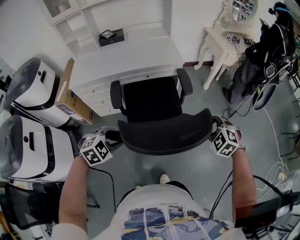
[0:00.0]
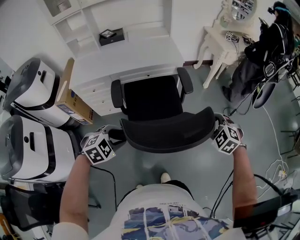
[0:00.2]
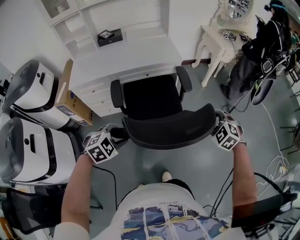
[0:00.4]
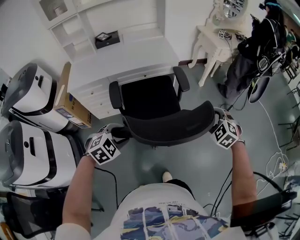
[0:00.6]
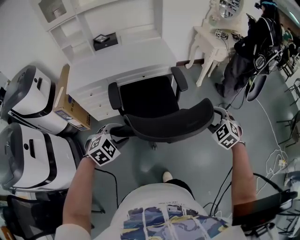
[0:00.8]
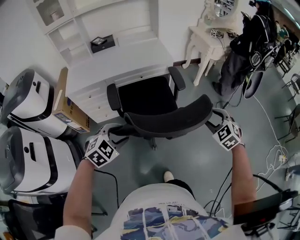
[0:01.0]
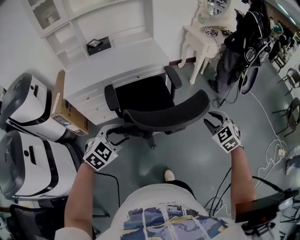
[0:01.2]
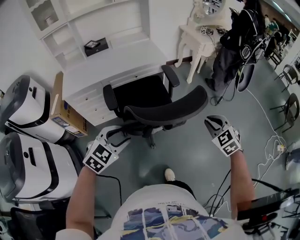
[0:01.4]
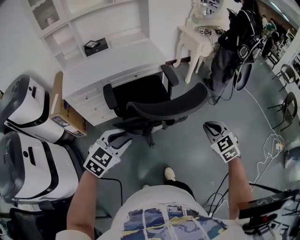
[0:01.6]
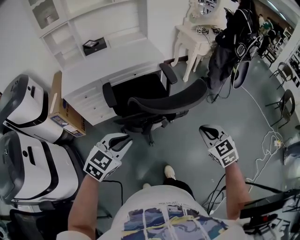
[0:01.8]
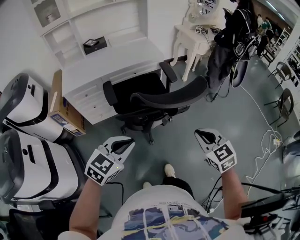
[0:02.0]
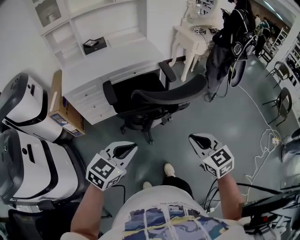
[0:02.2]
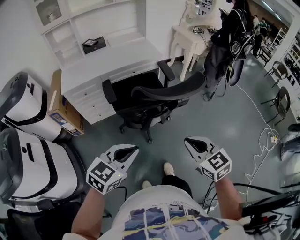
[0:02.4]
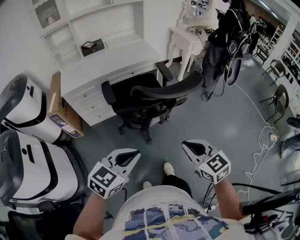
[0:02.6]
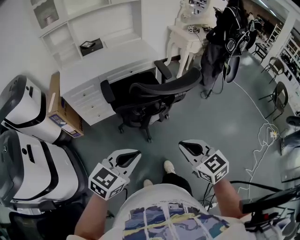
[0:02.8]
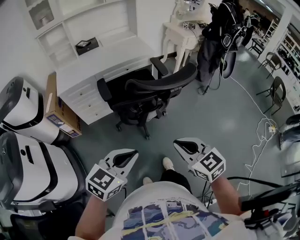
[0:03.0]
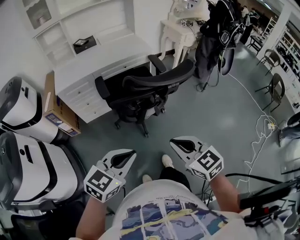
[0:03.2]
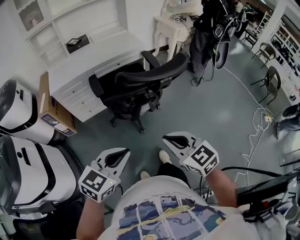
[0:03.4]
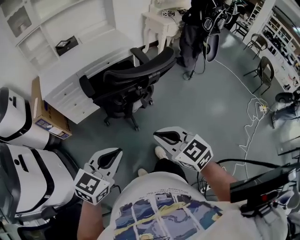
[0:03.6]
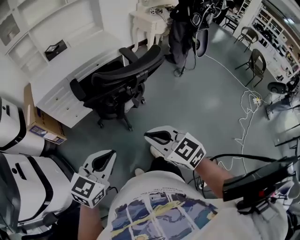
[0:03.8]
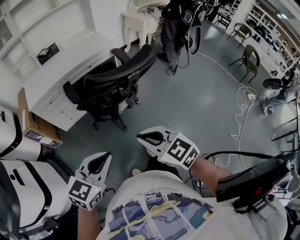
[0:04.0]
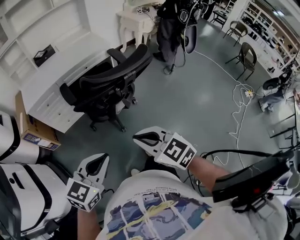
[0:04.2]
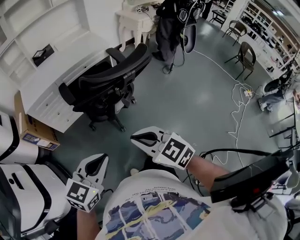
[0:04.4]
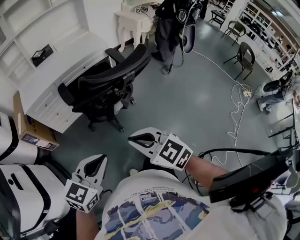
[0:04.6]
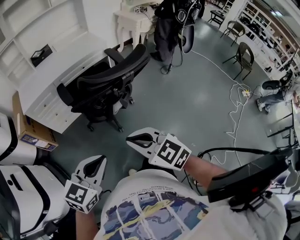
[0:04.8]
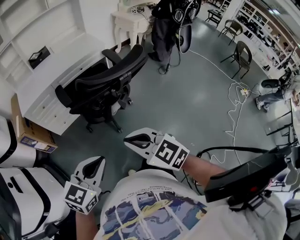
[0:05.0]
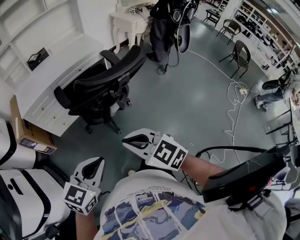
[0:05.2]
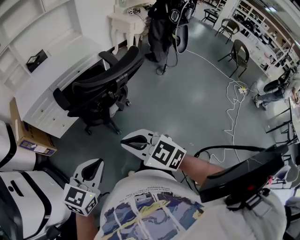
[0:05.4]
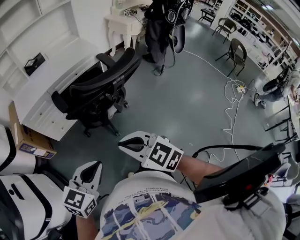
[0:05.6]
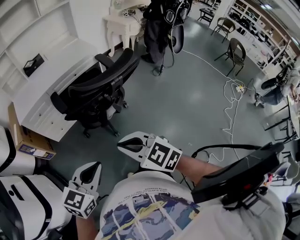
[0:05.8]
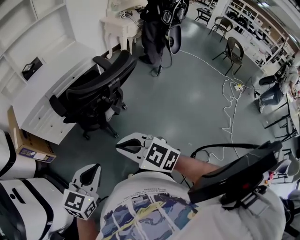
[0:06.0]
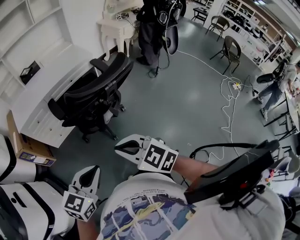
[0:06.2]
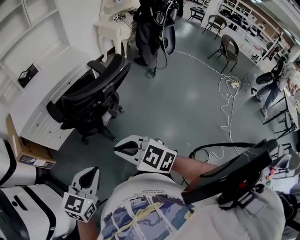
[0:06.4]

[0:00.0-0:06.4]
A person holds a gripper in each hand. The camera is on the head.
0:00.0 to 0:01.6: The left gripper moves upward and backward, roughly 10 cm, and rotates approximately 30 degrees. Meanwhile the right gripper shifts roughly 15 cm backward, changes its angle by roughly 30 degrees, and closes its fingers.
0:01.6 to 0:03.2: The left gripper shifts roughly 15 cm backward, and closes its fingers. Meanwhile the right gripper is displaced backward and to the left by roughly 25 cm, and swivels approximately 30 degrees.
0:03.2 to 0:04.8: The grippers make only small movements.
0:04.8 to 0:06.4: Both grippers stay about where they are.

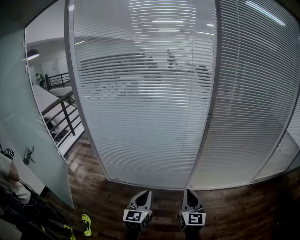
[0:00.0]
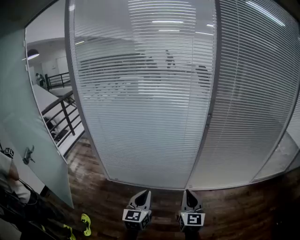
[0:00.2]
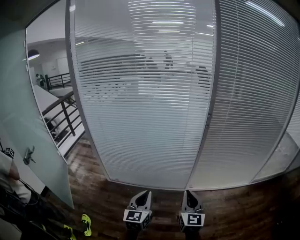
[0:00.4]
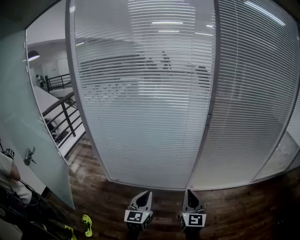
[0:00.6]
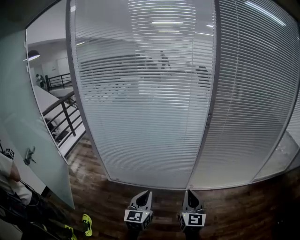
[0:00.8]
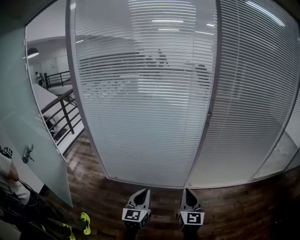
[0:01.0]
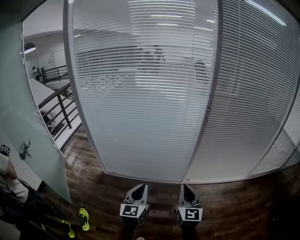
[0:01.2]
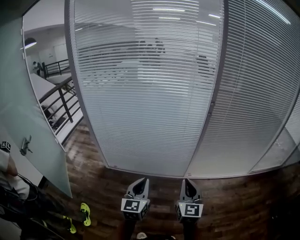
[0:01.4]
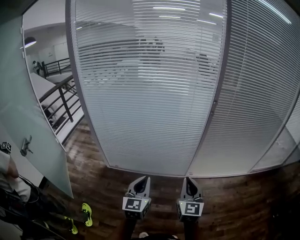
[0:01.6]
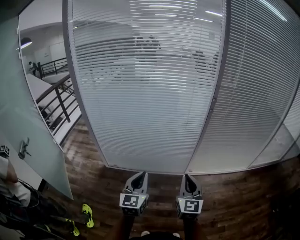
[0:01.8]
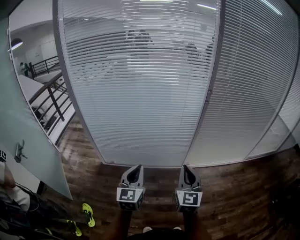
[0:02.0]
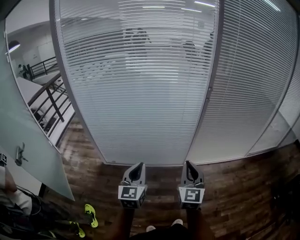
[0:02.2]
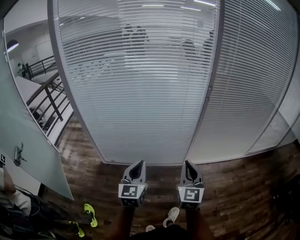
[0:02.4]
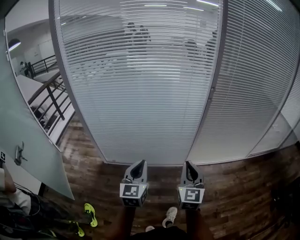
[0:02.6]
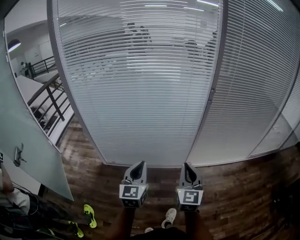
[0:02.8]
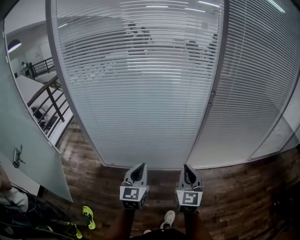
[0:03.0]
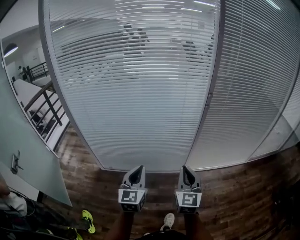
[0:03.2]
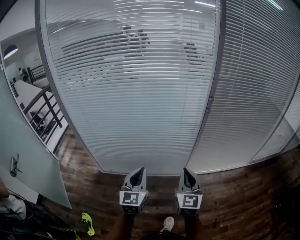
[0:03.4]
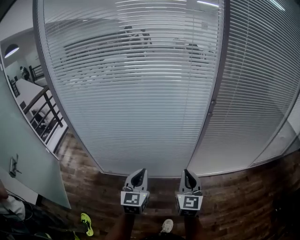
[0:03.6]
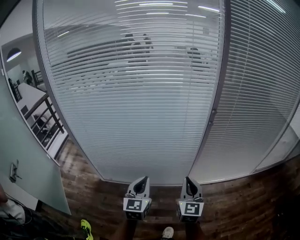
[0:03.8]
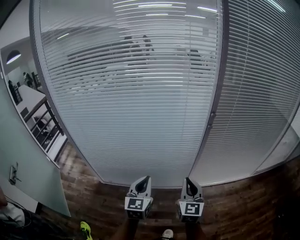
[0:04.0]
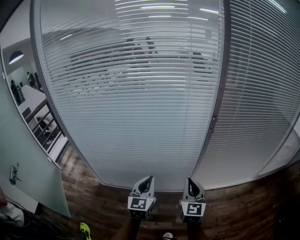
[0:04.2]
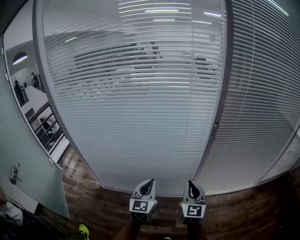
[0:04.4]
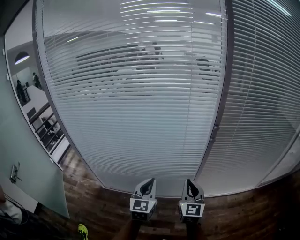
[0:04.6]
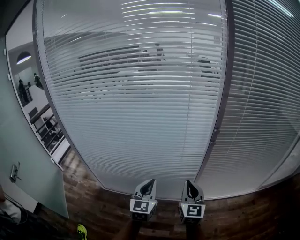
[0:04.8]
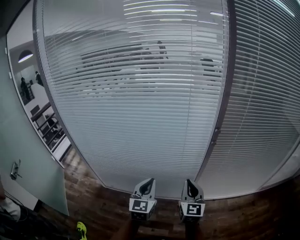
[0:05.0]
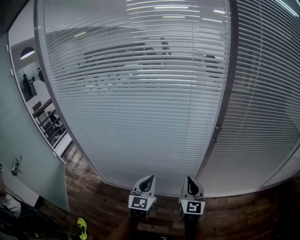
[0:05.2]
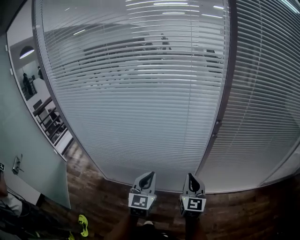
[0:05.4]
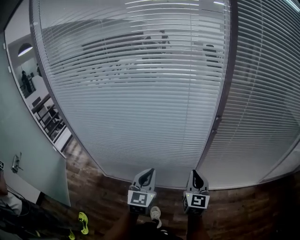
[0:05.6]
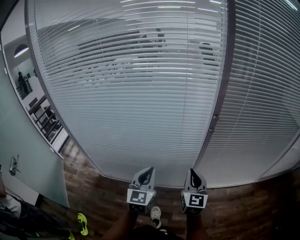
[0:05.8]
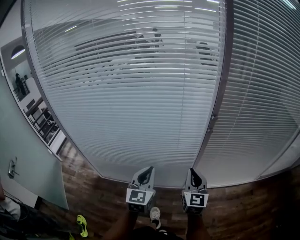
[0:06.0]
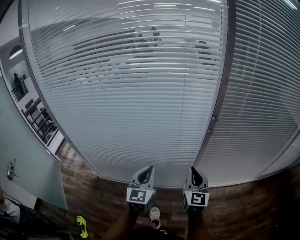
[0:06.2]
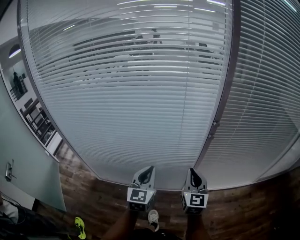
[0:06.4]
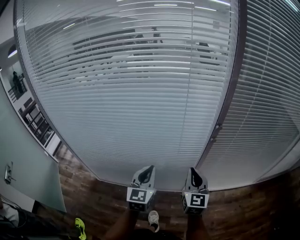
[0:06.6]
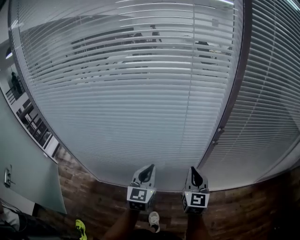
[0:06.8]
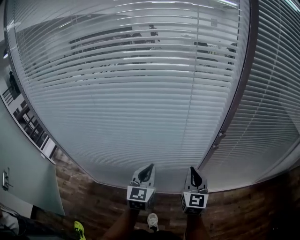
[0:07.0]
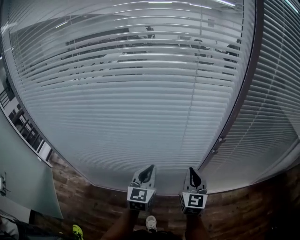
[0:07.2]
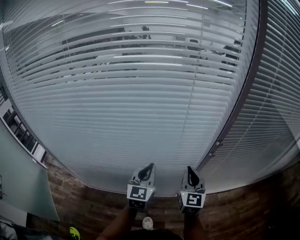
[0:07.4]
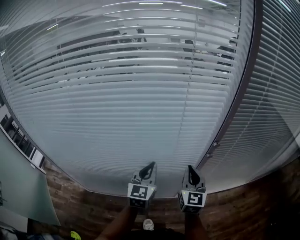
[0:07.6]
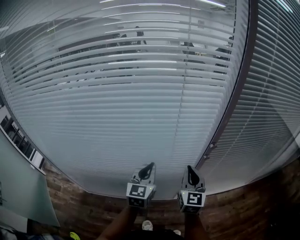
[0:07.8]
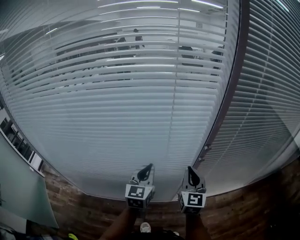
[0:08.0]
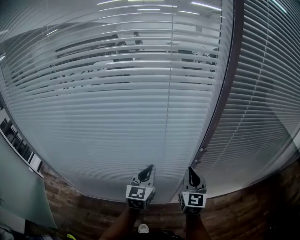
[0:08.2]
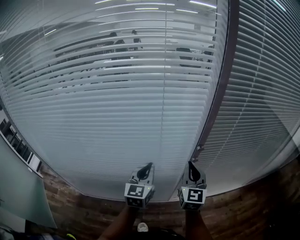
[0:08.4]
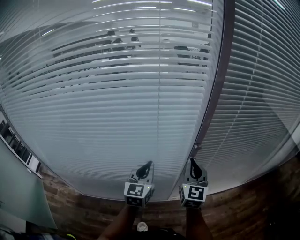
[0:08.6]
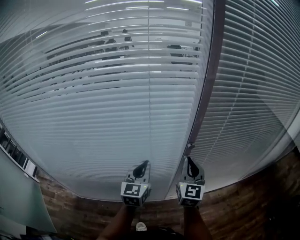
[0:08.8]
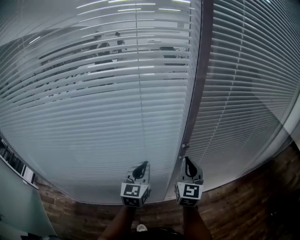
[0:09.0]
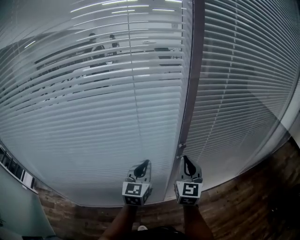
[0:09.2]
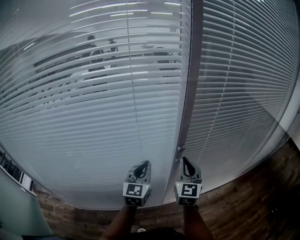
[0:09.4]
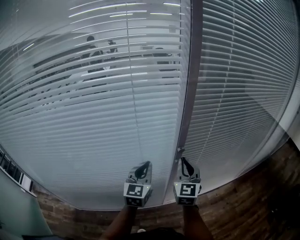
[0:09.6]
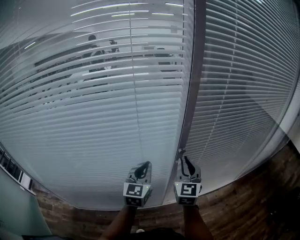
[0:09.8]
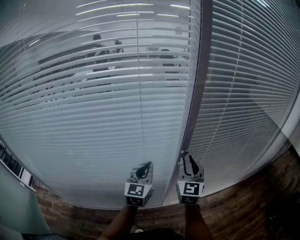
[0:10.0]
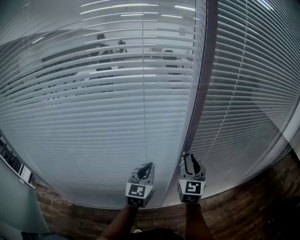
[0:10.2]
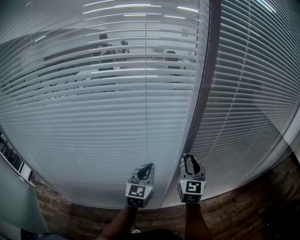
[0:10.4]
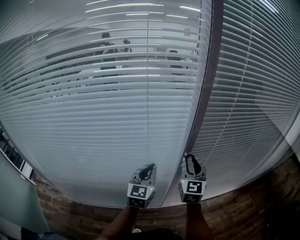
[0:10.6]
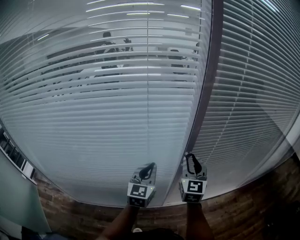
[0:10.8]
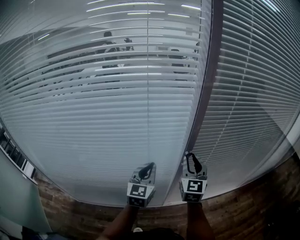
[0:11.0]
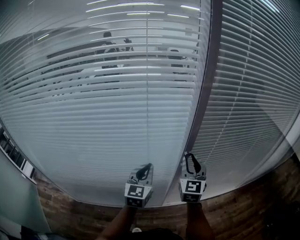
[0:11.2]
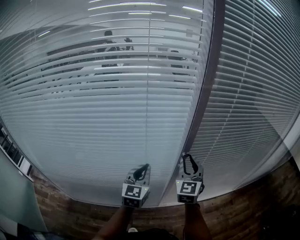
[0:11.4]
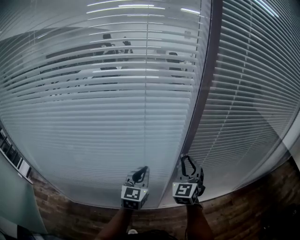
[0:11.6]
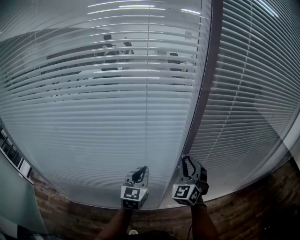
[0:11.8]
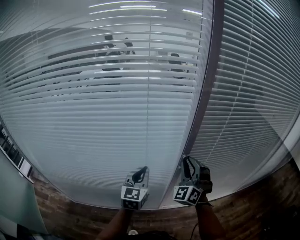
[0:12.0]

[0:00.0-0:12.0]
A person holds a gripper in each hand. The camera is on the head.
0:00.0 to 0:01.6: The grippers stay close to where they were, moving slightly.
0:01.6 to 0:03.0: The two grippers go some 5 cm forward.
0:03.0 to 0:04.4: The left gripper moves forward and to the right, roughly 15 cm; the right gripper travels forward by some 15 cm.
0:04.4 to 0:06.0: The left gripper shifts by roughly 5 cm; the right gripper goes some 5 cm forward.
0:06.0 to 0:07.6: Both grippers travel together forward, about 15 cm.
0:07.6 to 0:09.0: The left gripper moves to the right, approximately 10 cm. The right gripper shifts roughly 10 cm to the right and upward.
0:09.0 to 0:10.4: The right gripper opens.
0:10.4 to 0:12.0: The right gripper rotates around the line of its fingers by about 50 degrees, counterclockwise from behind.

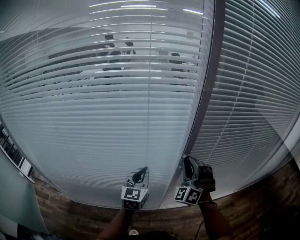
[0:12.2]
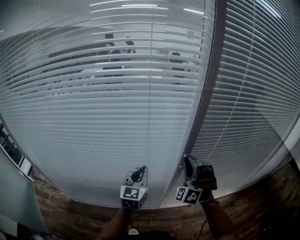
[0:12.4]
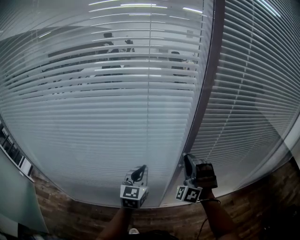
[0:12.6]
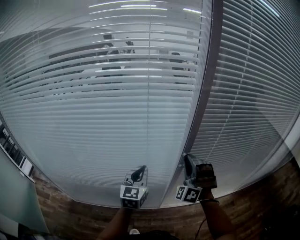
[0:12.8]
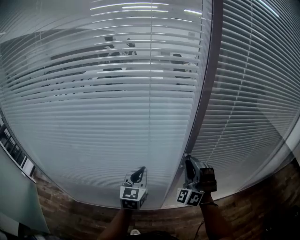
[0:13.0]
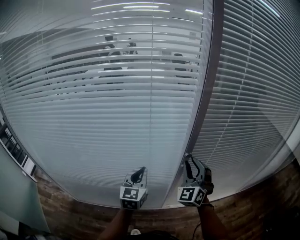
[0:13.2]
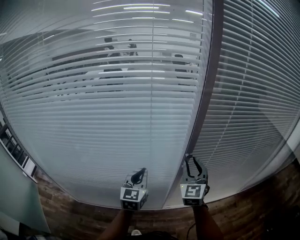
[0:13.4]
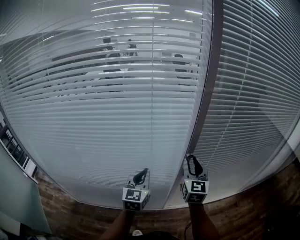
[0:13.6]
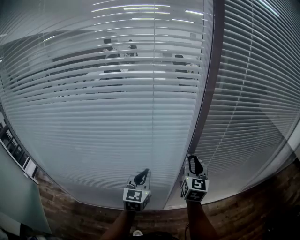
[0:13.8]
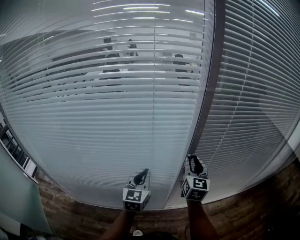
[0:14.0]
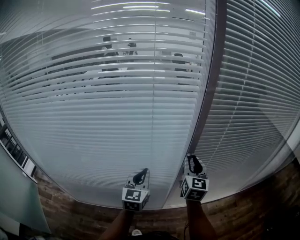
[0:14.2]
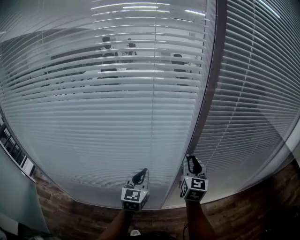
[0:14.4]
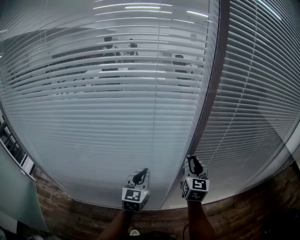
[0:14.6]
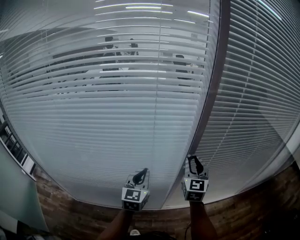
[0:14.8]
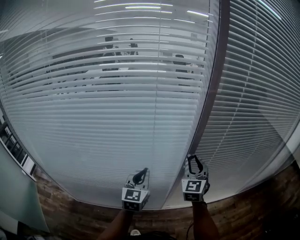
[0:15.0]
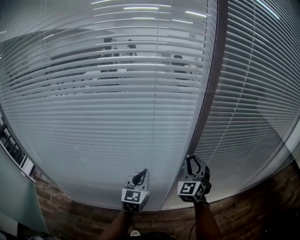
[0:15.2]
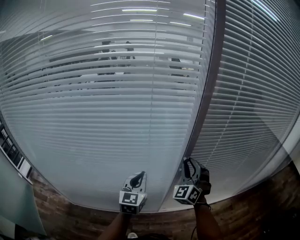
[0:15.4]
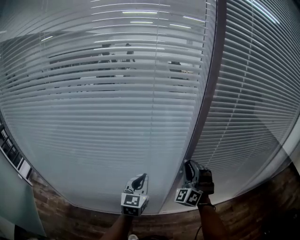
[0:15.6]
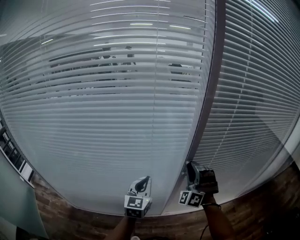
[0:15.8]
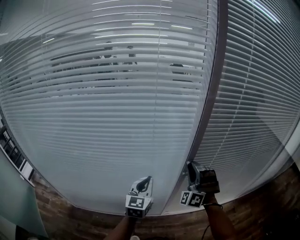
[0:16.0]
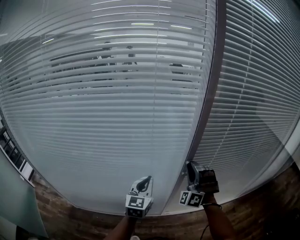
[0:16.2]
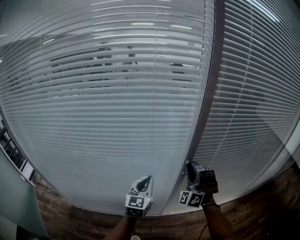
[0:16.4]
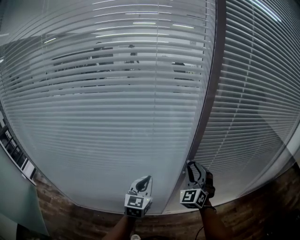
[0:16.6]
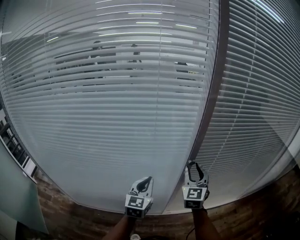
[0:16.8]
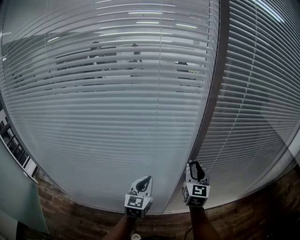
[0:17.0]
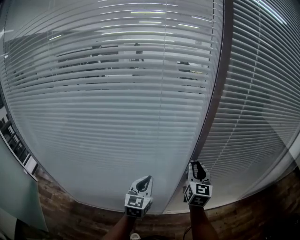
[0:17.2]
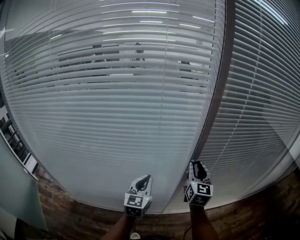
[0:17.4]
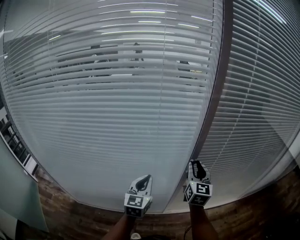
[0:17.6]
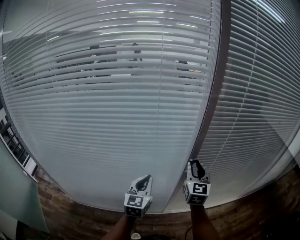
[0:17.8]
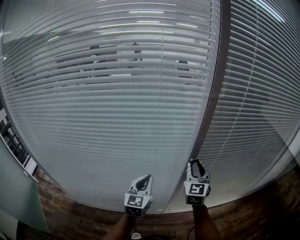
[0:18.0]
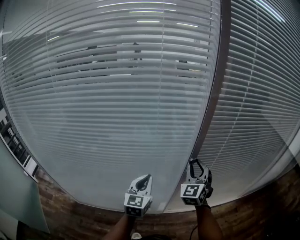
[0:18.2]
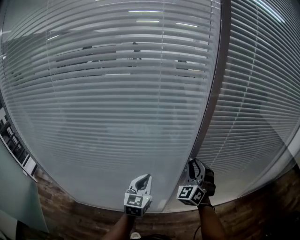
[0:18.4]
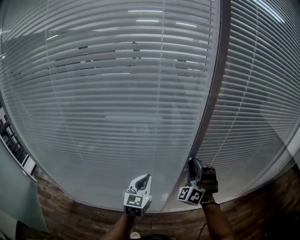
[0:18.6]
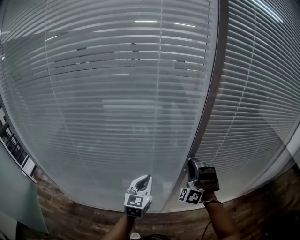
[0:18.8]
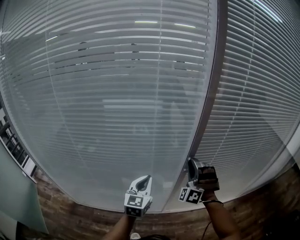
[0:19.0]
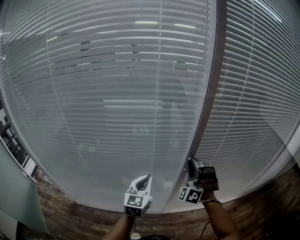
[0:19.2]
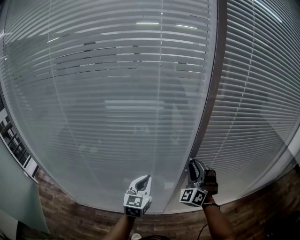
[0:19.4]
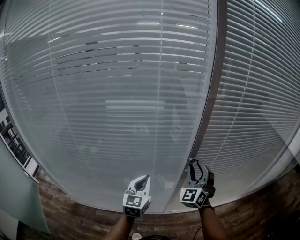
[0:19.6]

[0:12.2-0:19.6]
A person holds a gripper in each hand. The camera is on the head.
0:12.2 to 0:13.6: The right gripper rotates around the line of its fingers by some 70 degrees, clockwise from behind.
0:13.6 to 0:15.2: The right gripper changes its angle by some 40 degrees.
